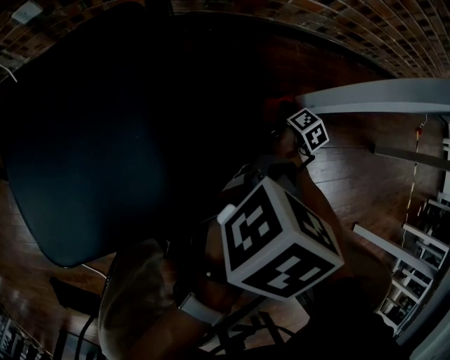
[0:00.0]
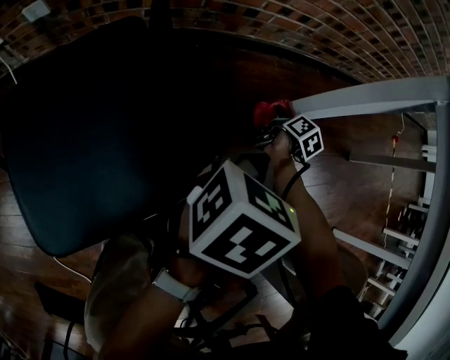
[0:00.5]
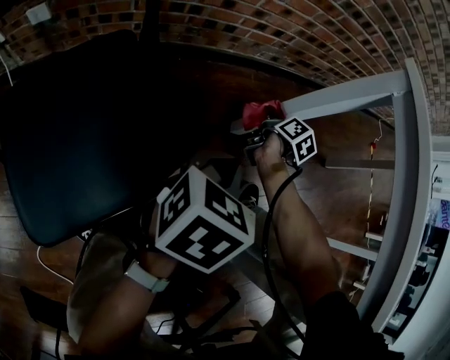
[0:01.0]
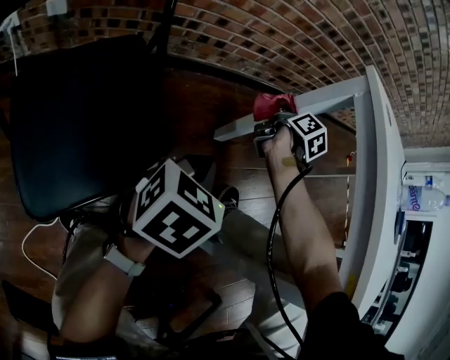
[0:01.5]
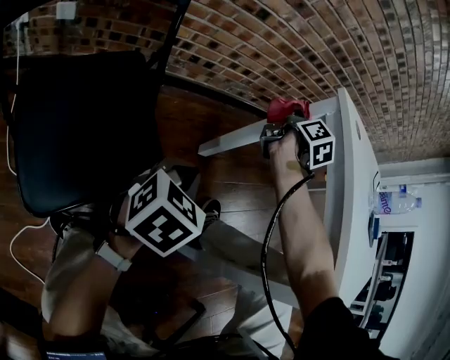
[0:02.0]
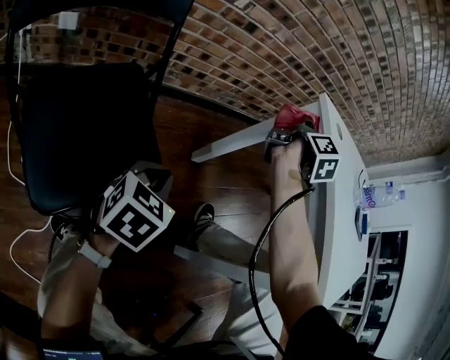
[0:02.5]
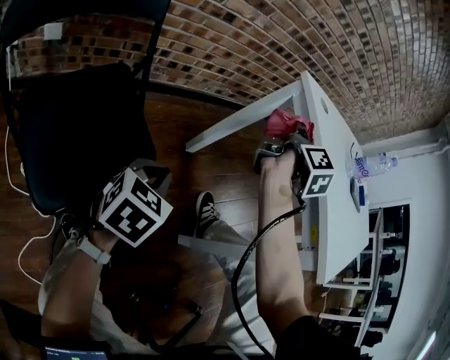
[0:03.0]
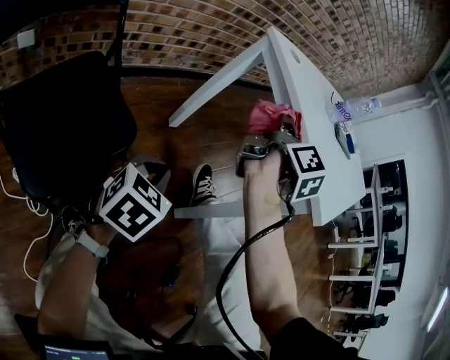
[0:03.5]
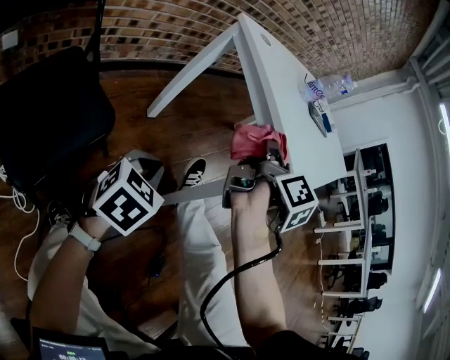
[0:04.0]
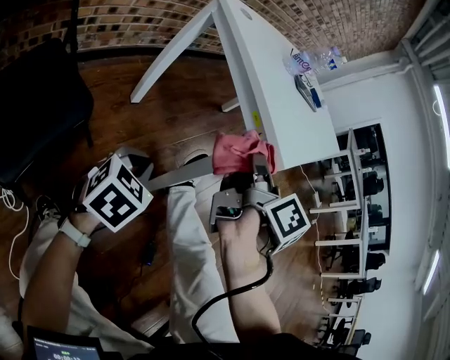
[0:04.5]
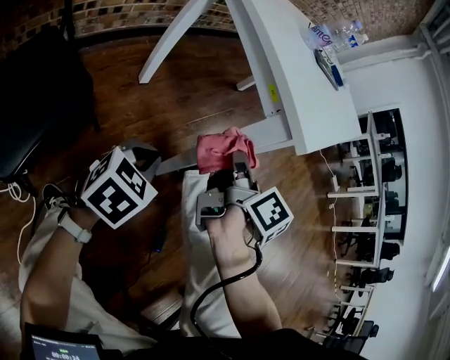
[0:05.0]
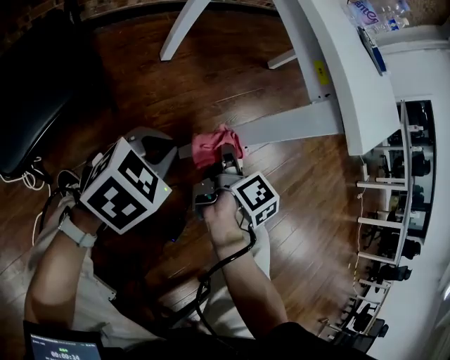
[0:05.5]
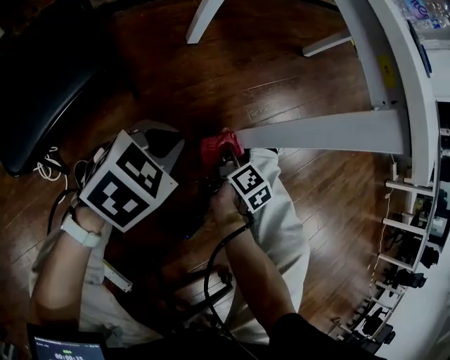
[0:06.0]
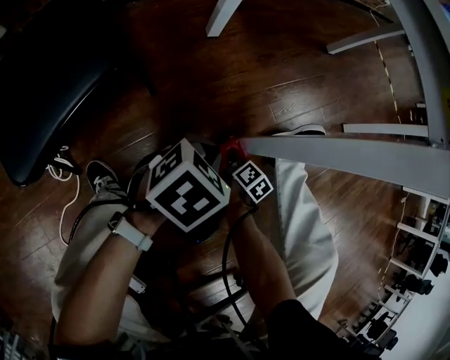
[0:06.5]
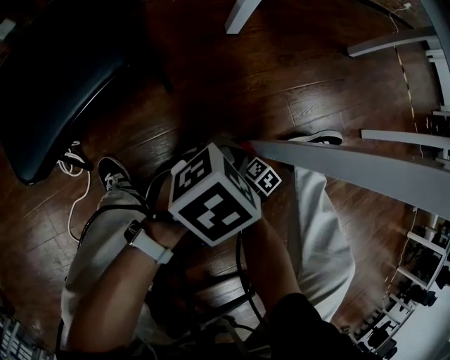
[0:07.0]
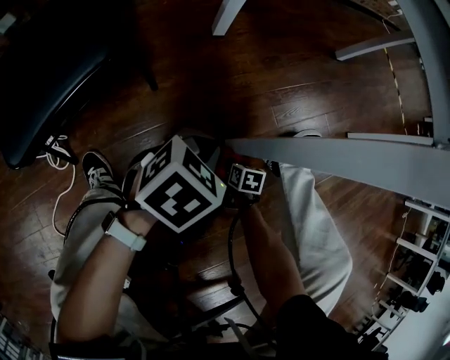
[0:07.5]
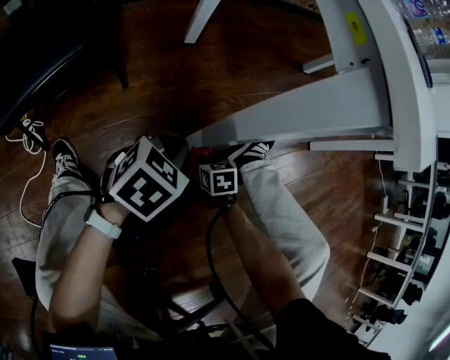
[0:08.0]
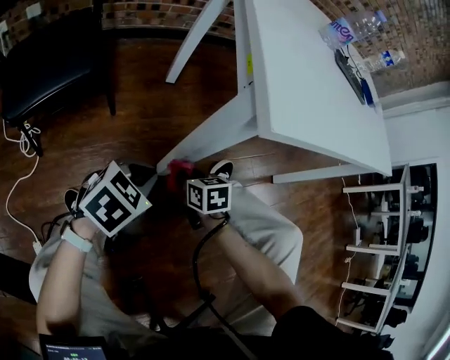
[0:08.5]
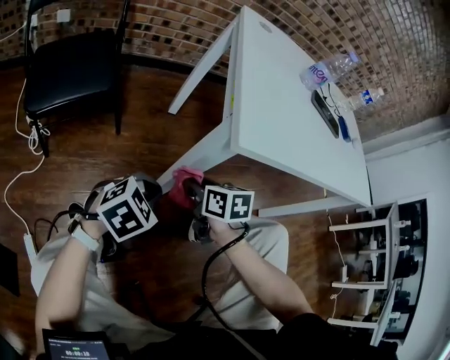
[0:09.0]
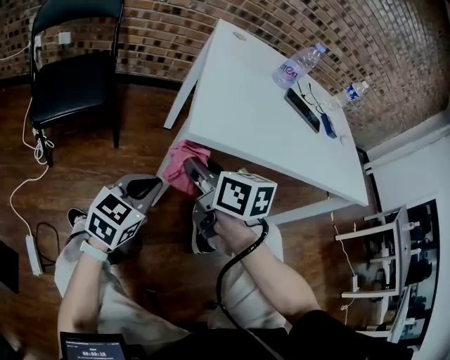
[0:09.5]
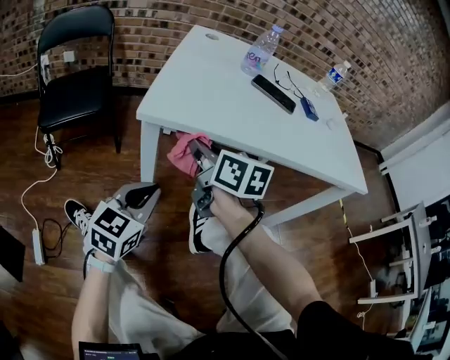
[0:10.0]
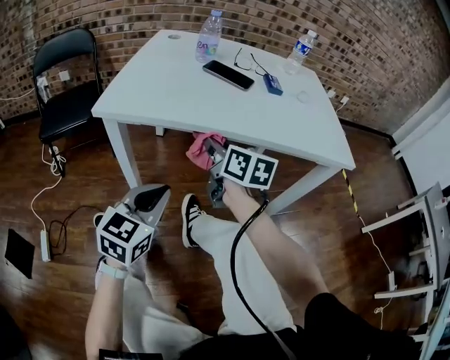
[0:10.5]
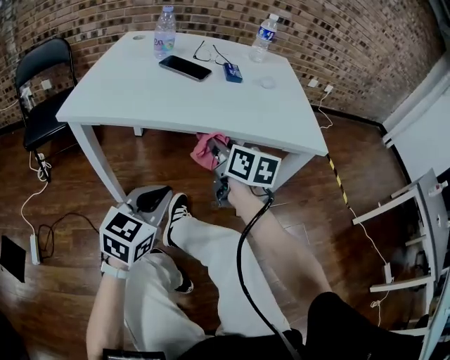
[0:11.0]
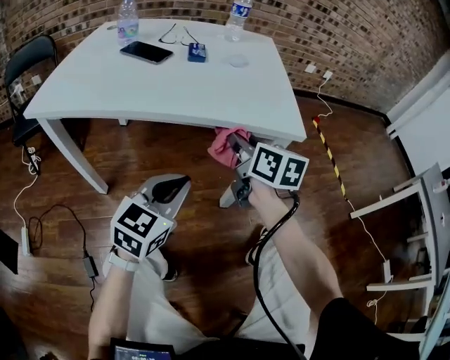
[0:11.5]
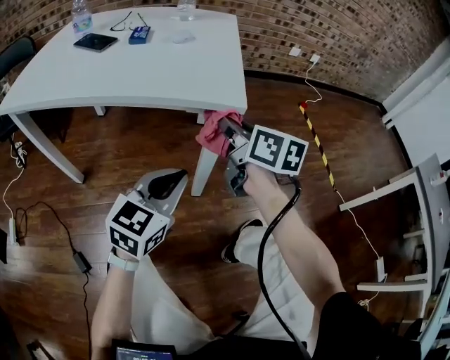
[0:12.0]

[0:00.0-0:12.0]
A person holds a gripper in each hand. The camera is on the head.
0:00.0 to 0:02.0: The left gripper heads upward and backward, covering about 15 cm, and rotates approximately 20 degrees. Meanwhile the right gripper moves upward, approximately 50 cm, and points its fingers roughly 30 degrees further upward.
0:02.0 to 0:04.0: The left gripper goes roughly 20 cm to the right and backward, and changes its angle by some 20 degrees. The right gripper goes some 40 cm backward and to the right, and changes its angle by some 30 degrees.
0:04.0 to 0:06.0: The right gripper is displaced downward by roughly 40 cm, and changes its angle by about 30 degrees; the left gripper heads downward and backward, covering some 15 cm.
0:06.0 to 0:08.0: The left gripper shifts by about 15 cm; the right gripper goes some 10 cm downward, and rotates around the line of its fingers by roughly 60 degrees, counterclockwise from behind.
0:08.0 to 0:10.0: The right gripper heads upward, covering approximately 50 cm, and tips its fingers upward by about 40 degrees, while the left gripper goes some 30 cm upward, to the right and backward, and points its fingers some 30 degrees further upward.
0:10.0 to 0:12.0: Both grippers are carried to the right, about 60 cm.

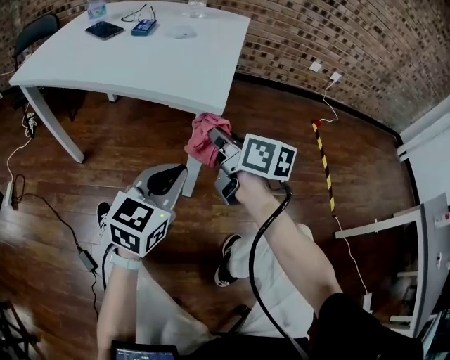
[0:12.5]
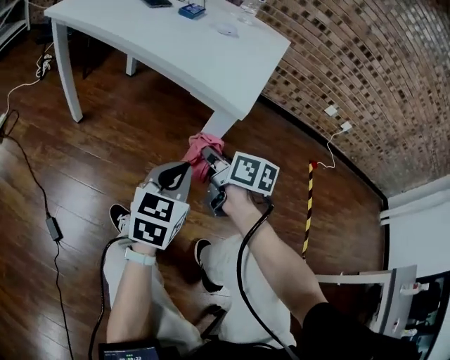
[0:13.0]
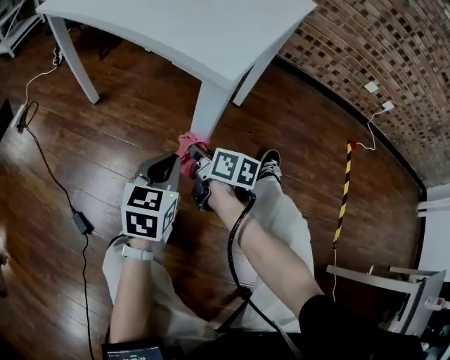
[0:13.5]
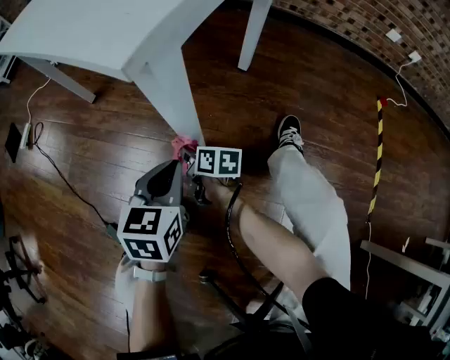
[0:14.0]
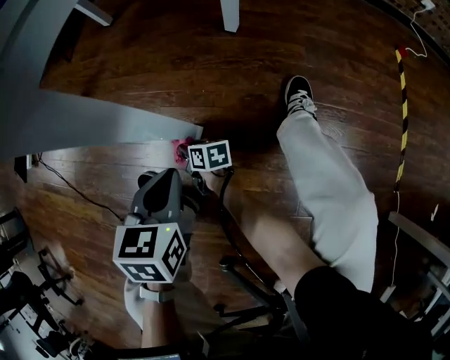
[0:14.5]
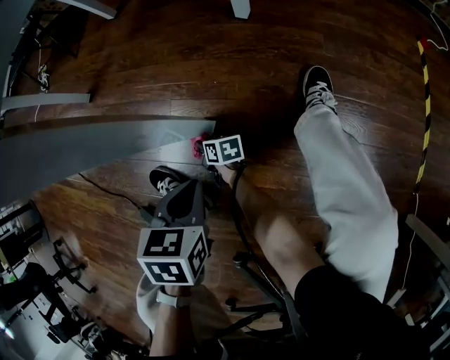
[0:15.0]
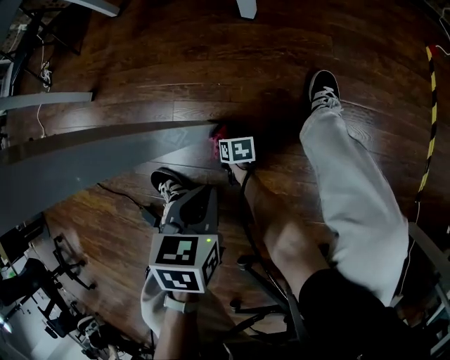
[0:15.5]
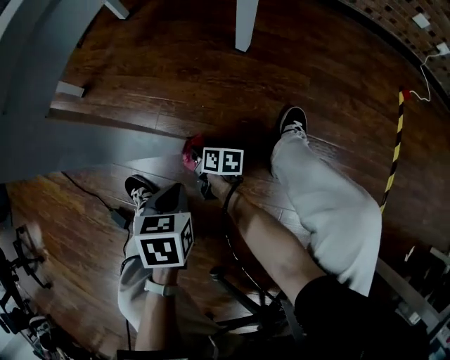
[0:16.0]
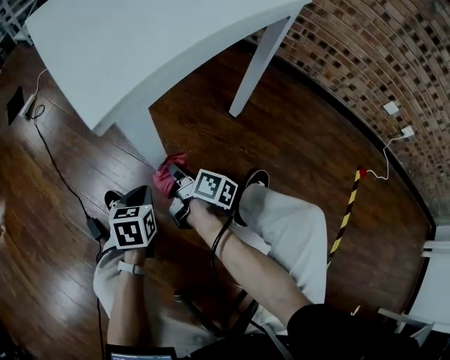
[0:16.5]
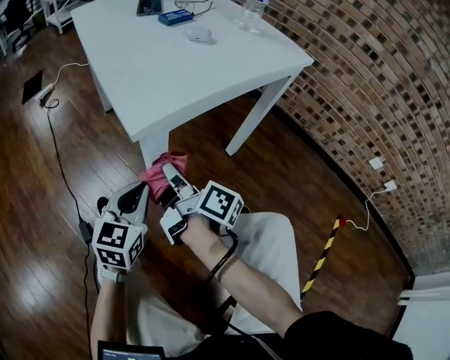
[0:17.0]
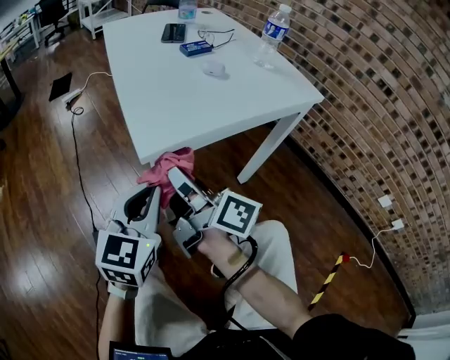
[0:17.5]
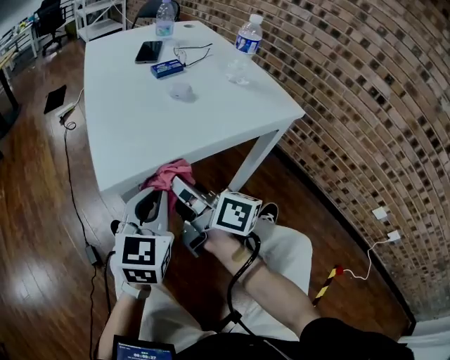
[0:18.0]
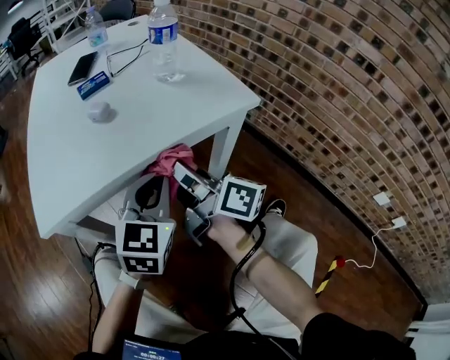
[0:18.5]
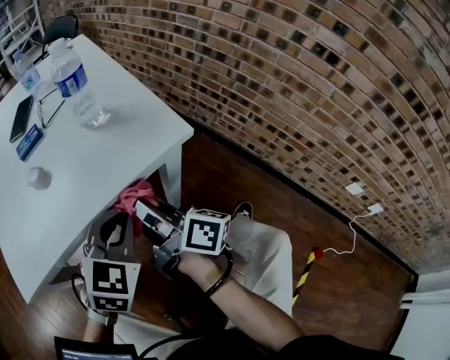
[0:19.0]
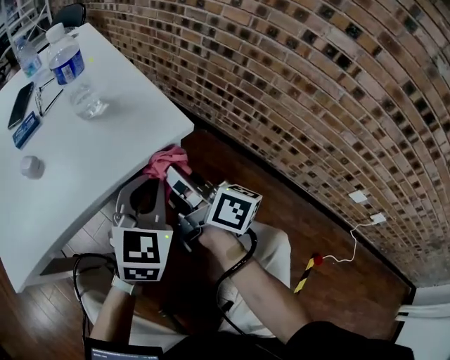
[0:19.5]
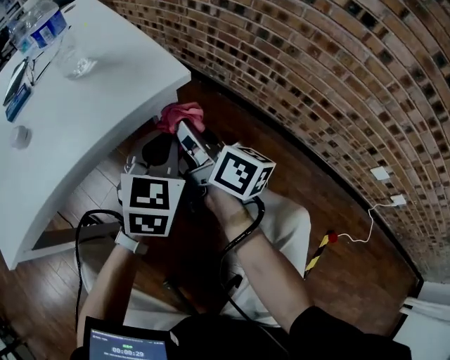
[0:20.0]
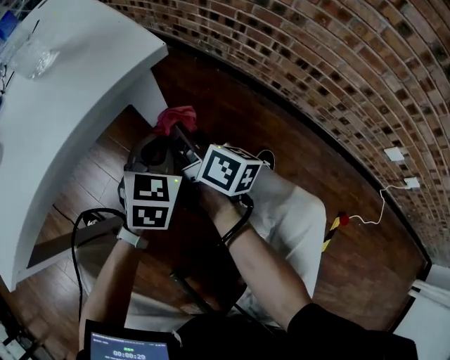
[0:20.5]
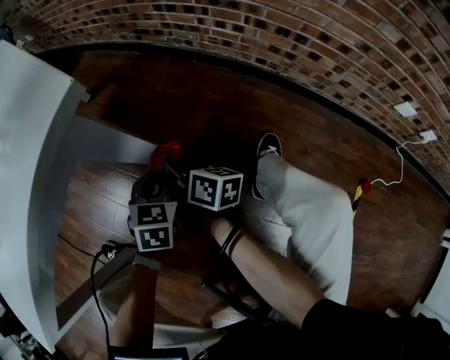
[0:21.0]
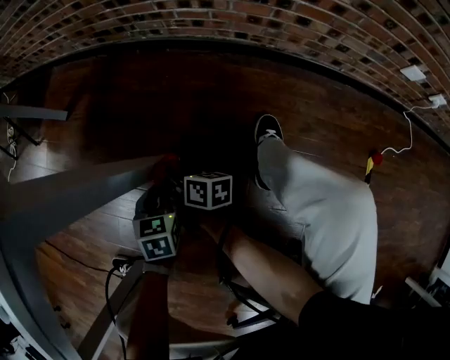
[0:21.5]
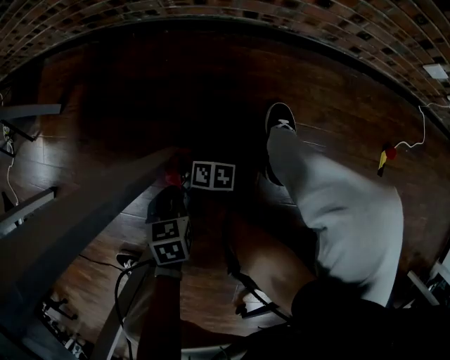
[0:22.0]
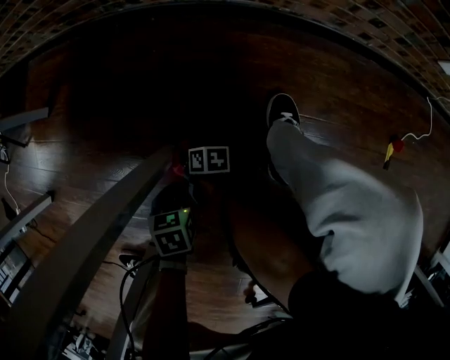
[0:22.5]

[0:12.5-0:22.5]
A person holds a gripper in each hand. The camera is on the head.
0:12.5 to 0:14.5: The left gripper shifts about 25 cm downward, and tips its fingers downward by some 30 degrees, while the right gripper heads downward, covering some 50 cm, and rotates roughly 40 degrees.
0:14.5 to 0:16.5: The left gripper rotates roughly 30 degrees, while the right gripper goes approximately 20 cm upward.
0:16.5 to 0:18.5: The right gripper heads upward and to the right, covering about 40 cm, and turns by some 40 degrees, while the left gripper goes some 40 cm to the right and upward, and points its fingers approximately 30 degrees further upward.
0:18.5 to 0:20.5: The right gripper shifts approximately 25 cm to the right and downward, and changes its angle by about 30 degrees, while the left gripper is displaced to the right, downward and forward by some 25 cm, and rotates approximately 20 degrees.
0:20.5 to 0:22.5: Both grippers travel together downward, about 40 cm. The right gripper tilts its fingers roughly 40 degrees downward. Meanwhile the left gripper angles its fingers downward, by some 40 degrees.

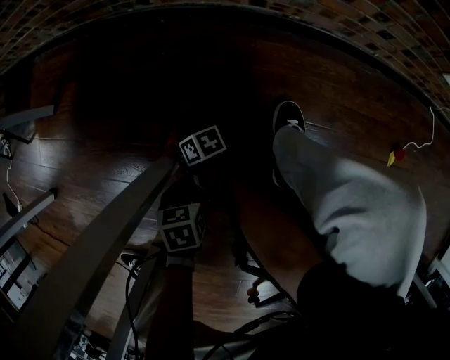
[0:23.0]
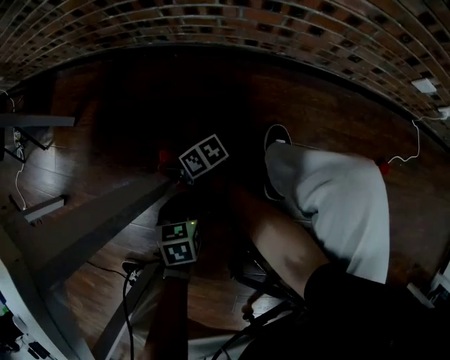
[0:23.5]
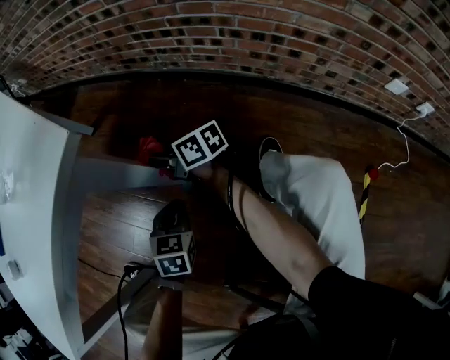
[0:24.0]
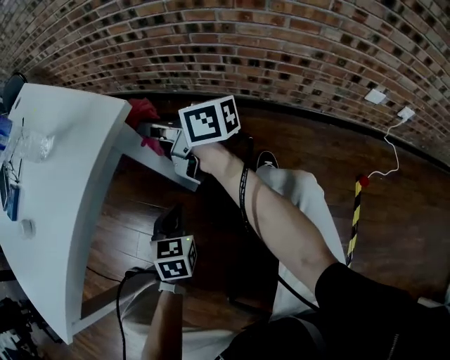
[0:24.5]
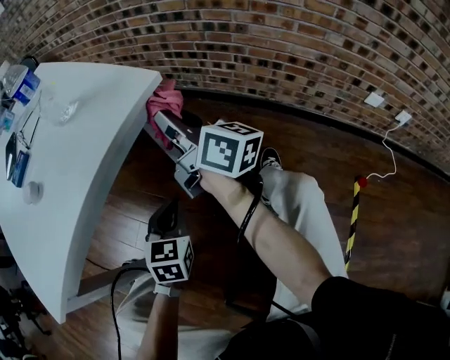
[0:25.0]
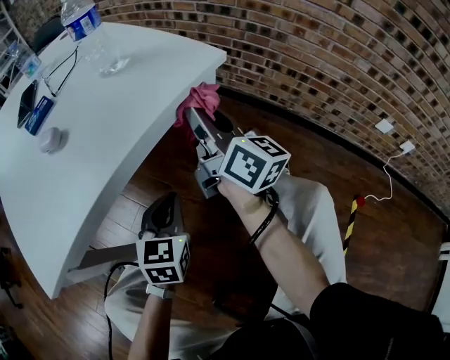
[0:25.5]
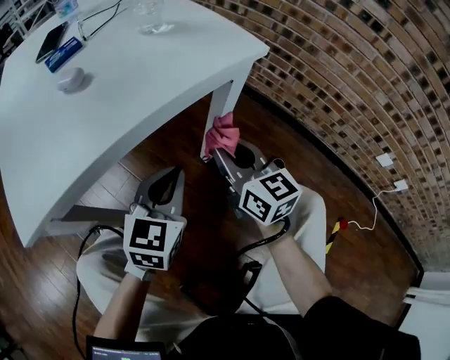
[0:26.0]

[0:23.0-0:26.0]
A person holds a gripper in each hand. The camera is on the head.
0:23.0 to 0:24.5: The right gripper heads upward, covering roughly 60 cm, and points its fingers about 40 degrees further upward, while the left gripper goes some 30 cm upward, and tilts its fingers some 30 degrees upward.
0:24.5 to 0:26.0: The left gripper is displaced upward and to the left by roughly 20 cm, and turns by about 20 degrees. The right gripper is displaced backward and to the left by some 20 cm, and changes its angle by some 40 degrees.

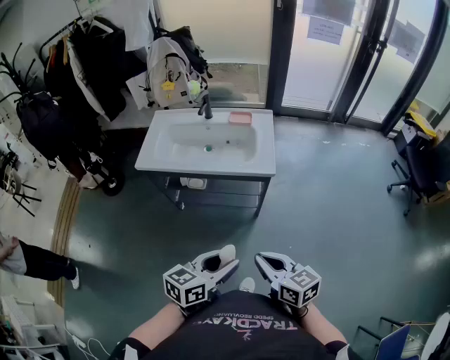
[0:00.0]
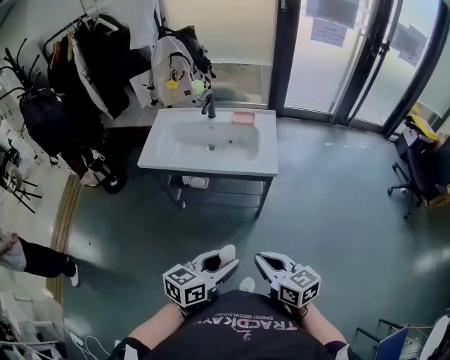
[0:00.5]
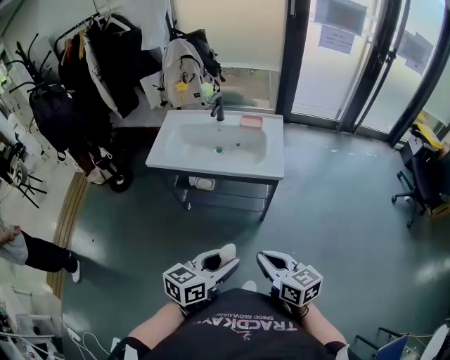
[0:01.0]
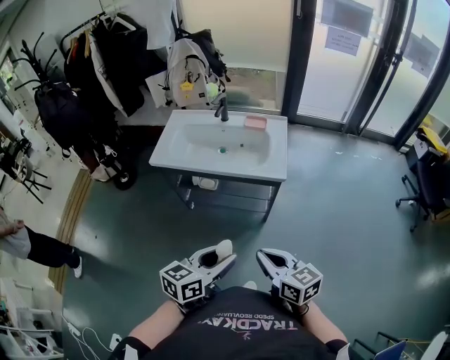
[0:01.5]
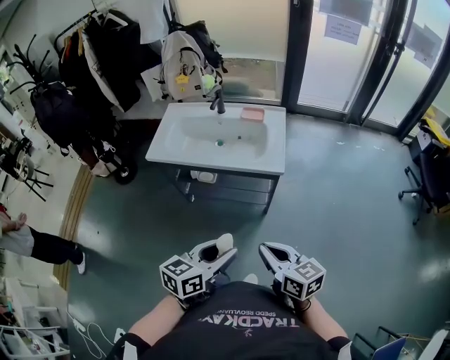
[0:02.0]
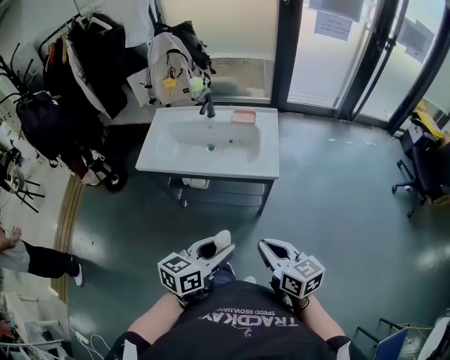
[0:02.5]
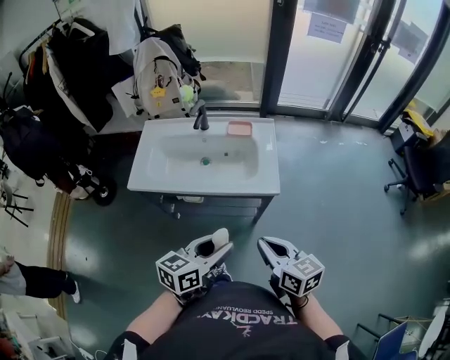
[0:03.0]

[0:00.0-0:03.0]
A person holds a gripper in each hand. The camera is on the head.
0:00.0 to 0:01.5: There are only small adjustments of the grippers.
0:01.5 to 0:03.0: Both grippers move forward, roughly 15 cm.
